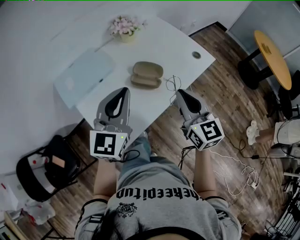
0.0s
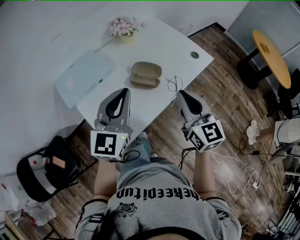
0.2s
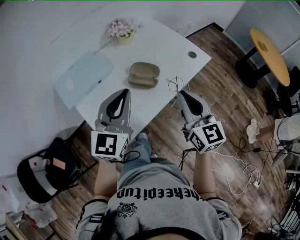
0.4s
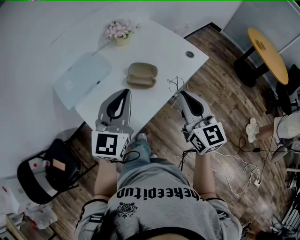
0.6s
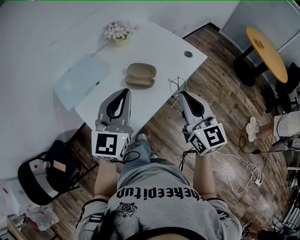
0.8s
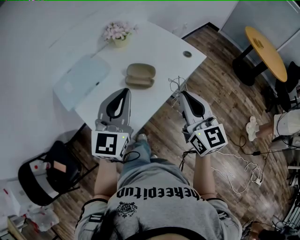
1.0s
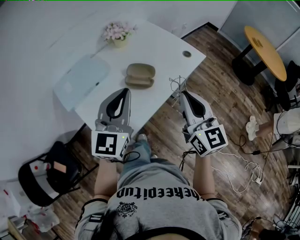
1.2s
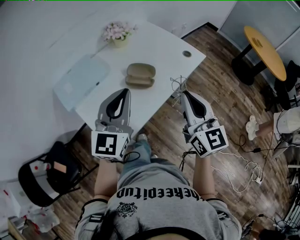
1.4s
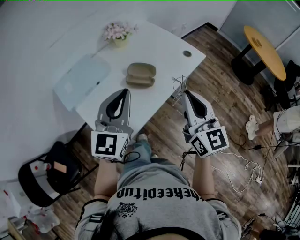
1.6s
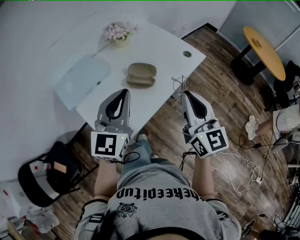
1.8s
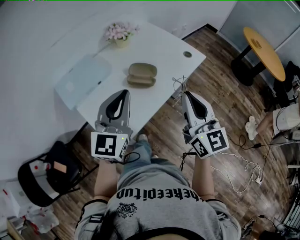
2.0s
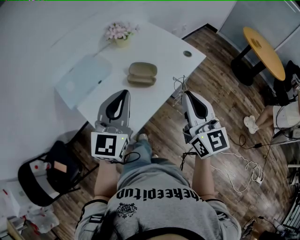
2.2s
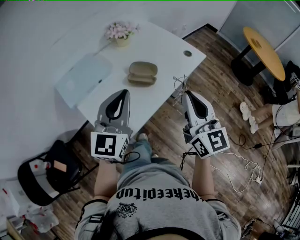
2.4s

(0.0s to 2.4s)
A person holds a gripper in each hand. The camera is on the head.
0.0s - 1.2s: The right gripper travels backward by some 5 cm.
1.2s - 2.4s: The grippers stay close to where they were, moving slightly.

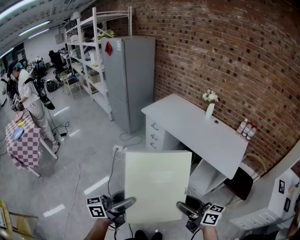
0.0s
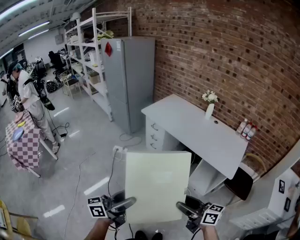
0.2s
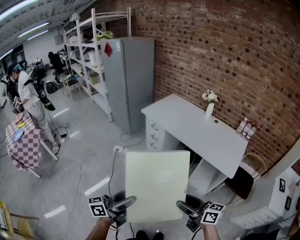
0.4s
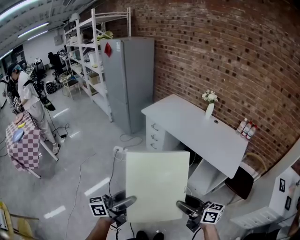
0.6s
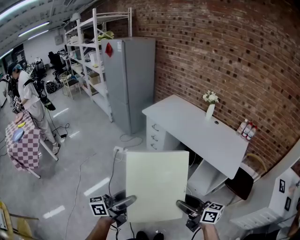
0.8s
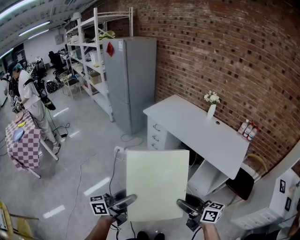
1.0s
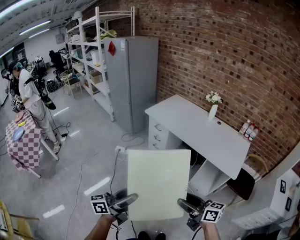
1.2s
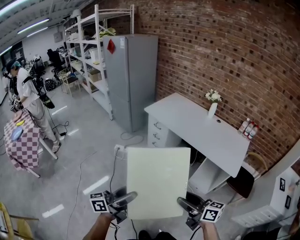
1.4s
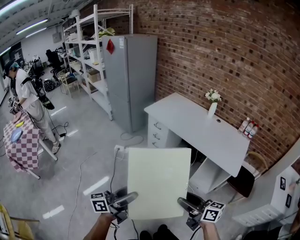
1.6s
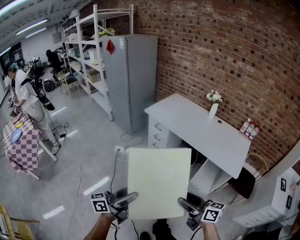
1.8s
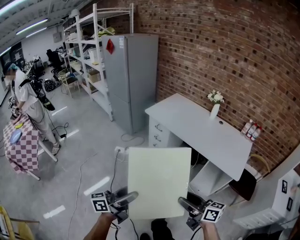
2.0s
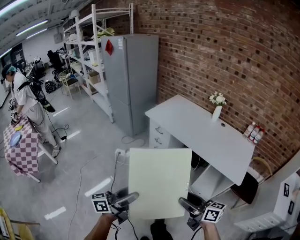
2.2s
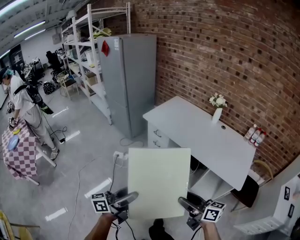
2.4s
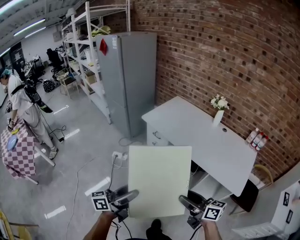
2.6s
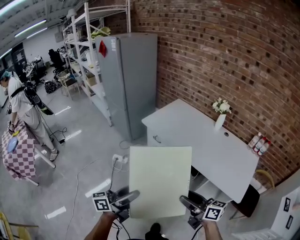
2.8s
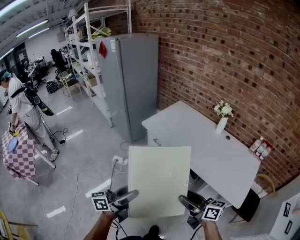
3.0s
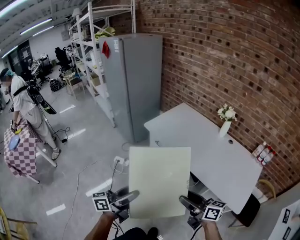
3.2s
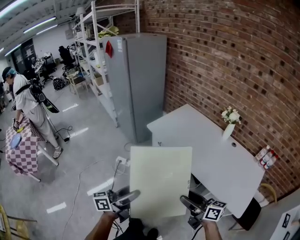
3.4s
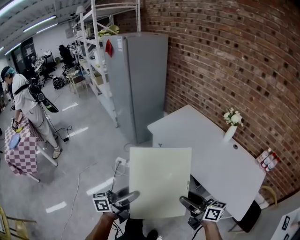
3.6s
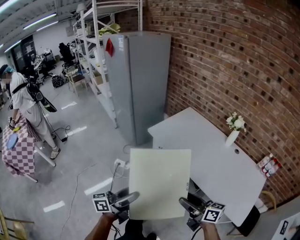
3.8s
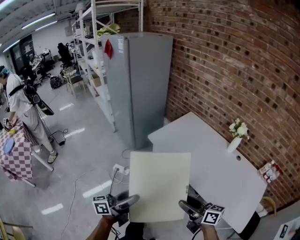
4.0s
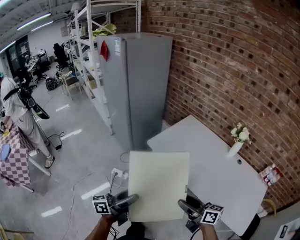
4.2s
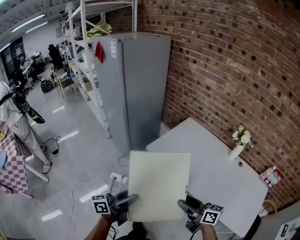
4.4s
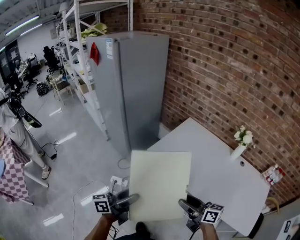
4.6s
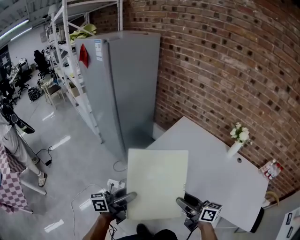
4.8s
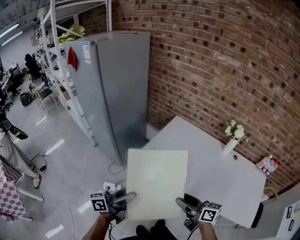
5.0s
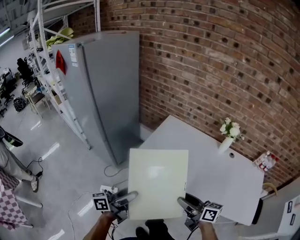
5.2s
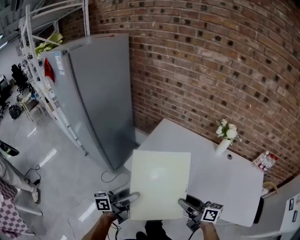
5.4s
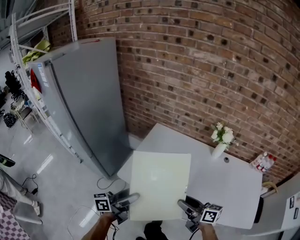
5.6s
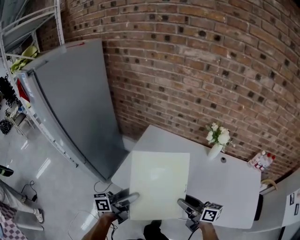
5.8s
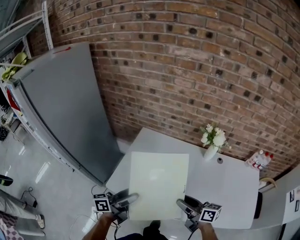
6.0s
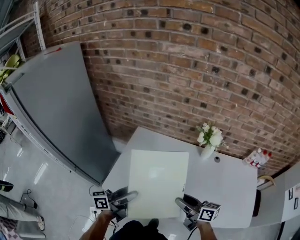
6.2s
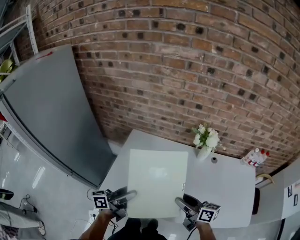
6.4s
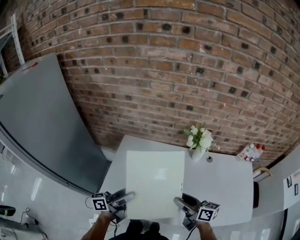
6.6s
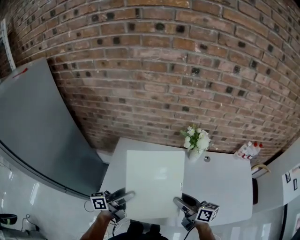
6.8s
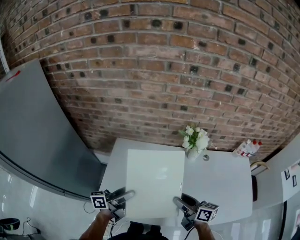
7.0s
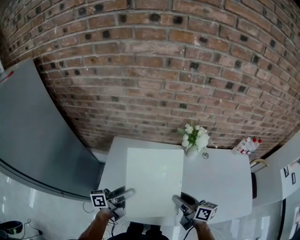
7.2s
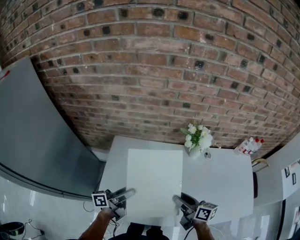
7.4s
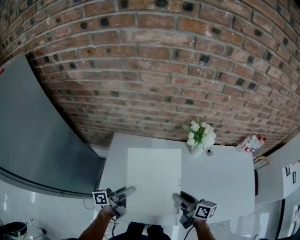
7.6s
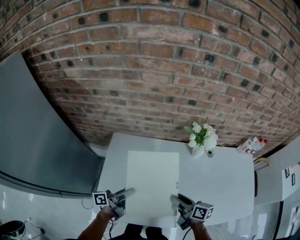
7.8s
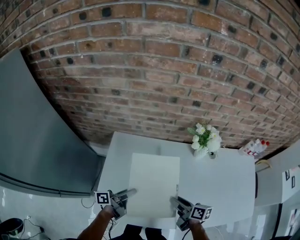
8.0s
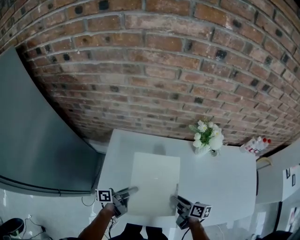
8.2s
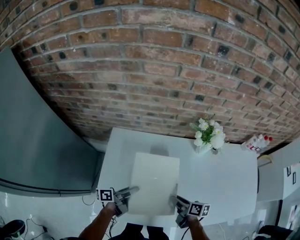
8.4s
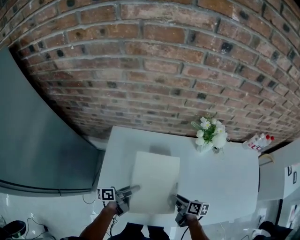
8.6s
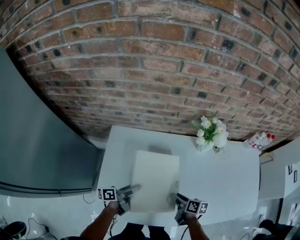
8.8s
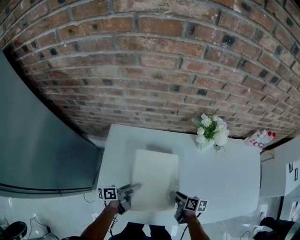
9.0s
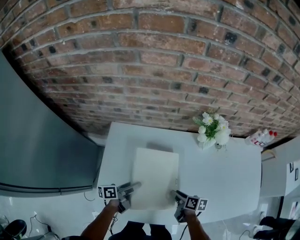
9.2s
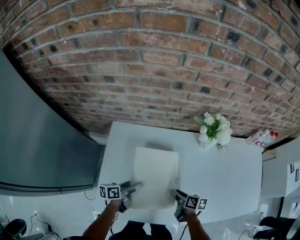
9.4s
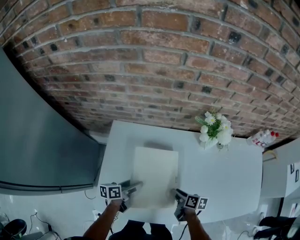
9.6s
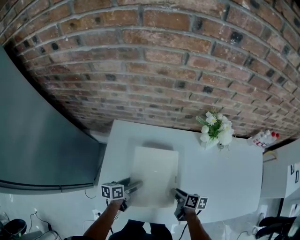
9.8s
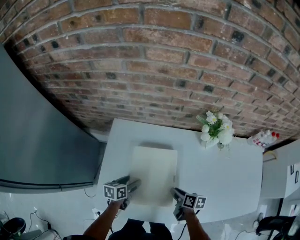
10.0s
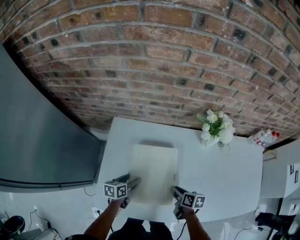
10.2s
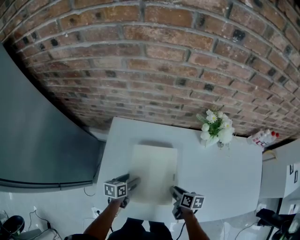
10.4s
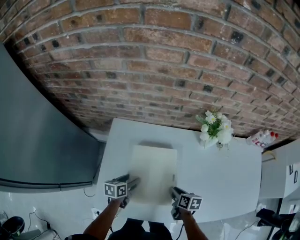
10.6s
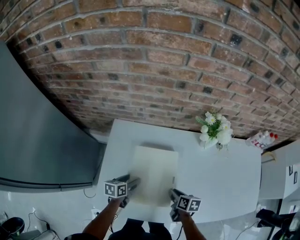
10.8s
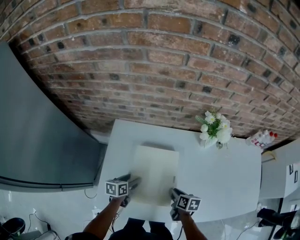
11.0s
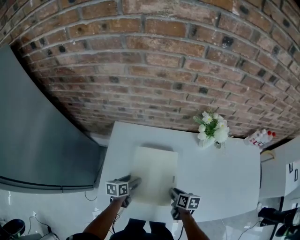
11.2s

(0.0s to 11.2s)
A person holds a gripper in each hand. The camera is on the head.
0.0s - 1.6s: Both grippers move to the left, approximately 5 cm.
1.6s - 3.2s: Both grippers move forward, about 30 cm.
3.2s - 4.8s: Both grippers move forward, approximately 35 cm.
4.8s - 6.4s: The left gripper shifts by about 40 cm, and swivels approximately 30 degrees. Meanwhile the right gripper moves roughly 30 cm, and turns by some 30 degrees.
6.4s - 8.0s: The grippers both shift downward and forward by about 15 cm. The right gripper rotates about 30 degrees; the left gripper turns by approximately 30 degrees.
8.0s - 9.6s: The grippers both shift downward by roughly 10 cm. The left gripper changes its angle by approximately 30 degrees.
9.6s - 11.2s: The left gripper rotates approximately 20 degrees.

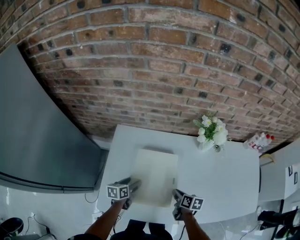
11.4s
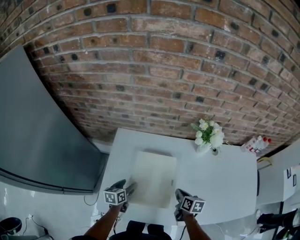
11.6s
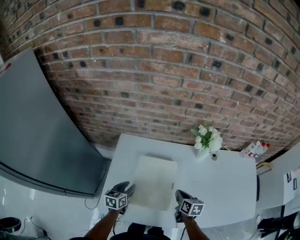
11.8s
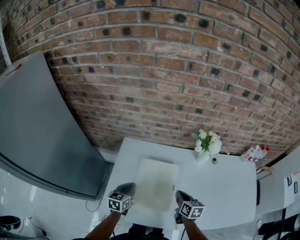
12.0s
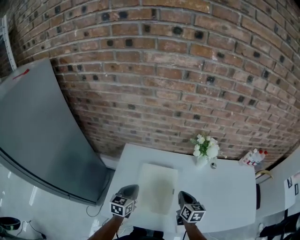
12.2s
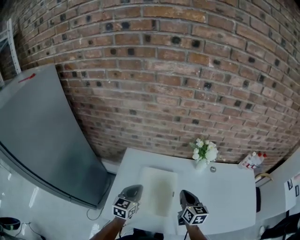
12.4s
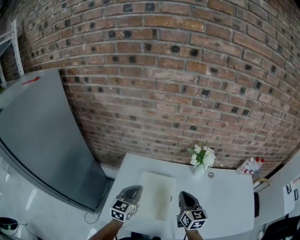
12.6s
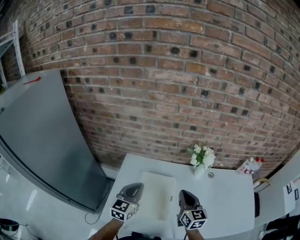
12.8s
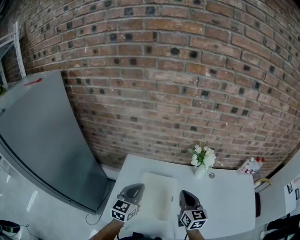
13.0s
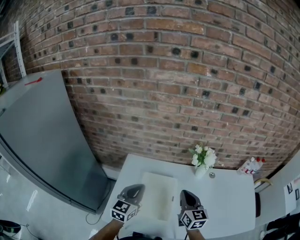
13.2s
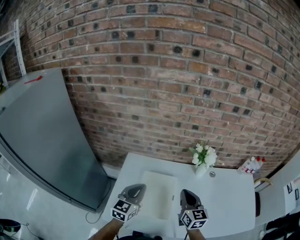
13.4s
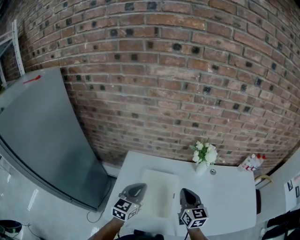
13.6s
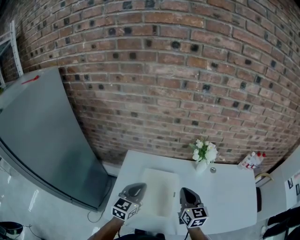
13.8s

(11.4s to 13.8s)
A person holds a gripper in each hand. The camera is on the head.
11.4s - 12.6s: Both grippers move upward, about 25 cm. The right gripper tilts its fingers approximately 30 degrees upward. The left gripper changes its angle by roughly 50 degrees, and closes up.
12.6s - 13.8s: There are only small adjustments of the grippers.

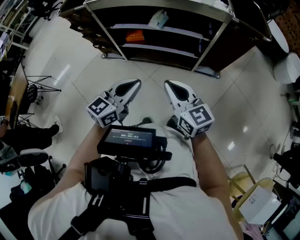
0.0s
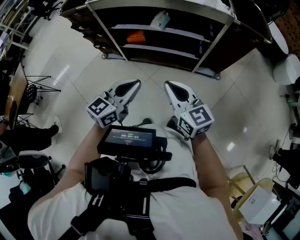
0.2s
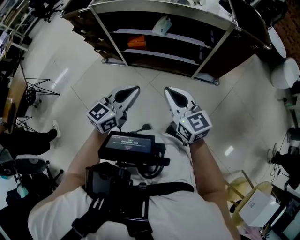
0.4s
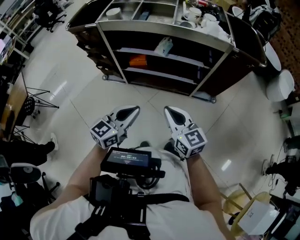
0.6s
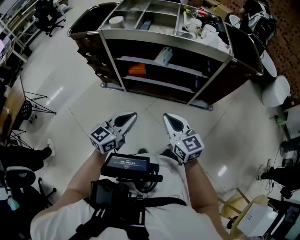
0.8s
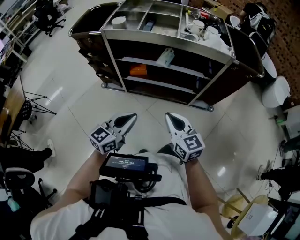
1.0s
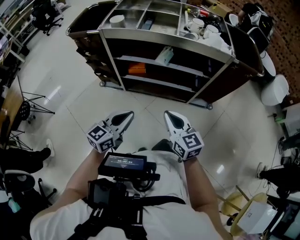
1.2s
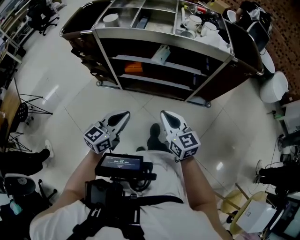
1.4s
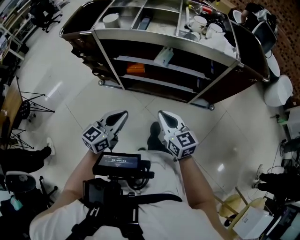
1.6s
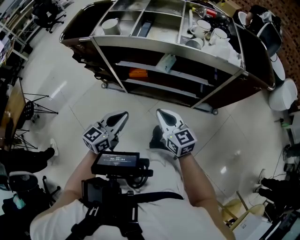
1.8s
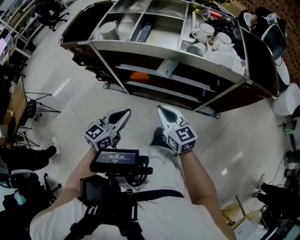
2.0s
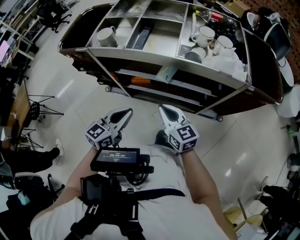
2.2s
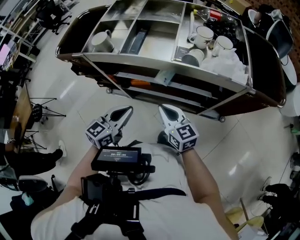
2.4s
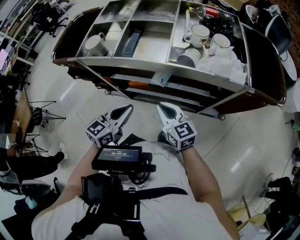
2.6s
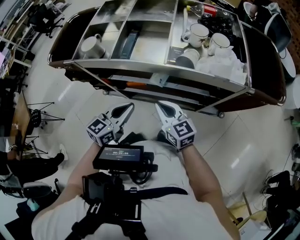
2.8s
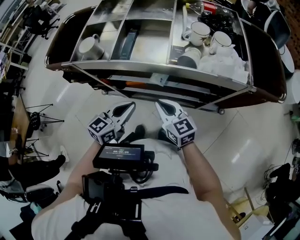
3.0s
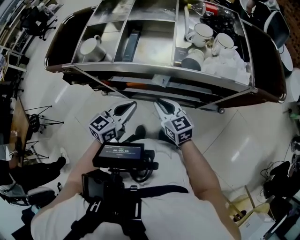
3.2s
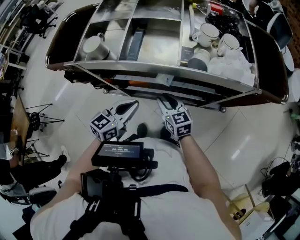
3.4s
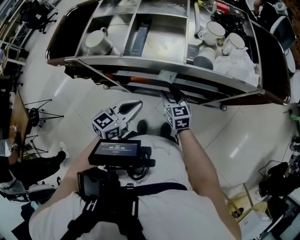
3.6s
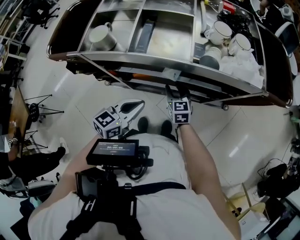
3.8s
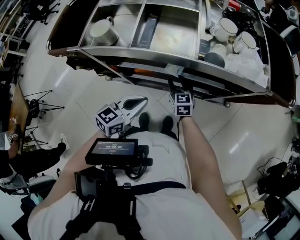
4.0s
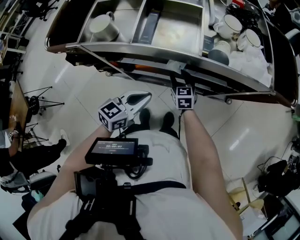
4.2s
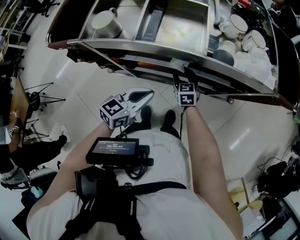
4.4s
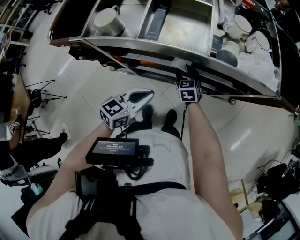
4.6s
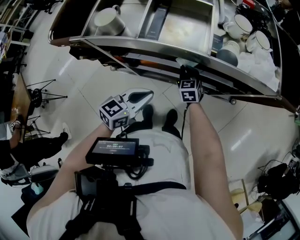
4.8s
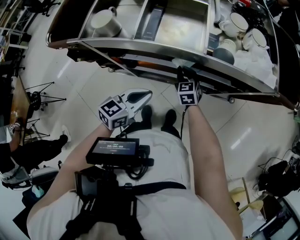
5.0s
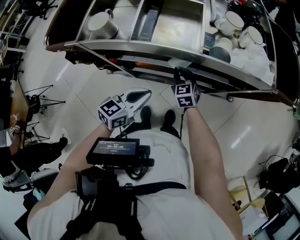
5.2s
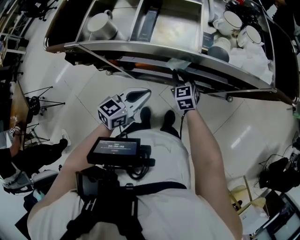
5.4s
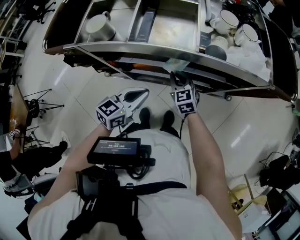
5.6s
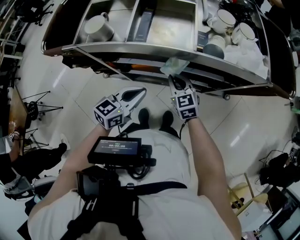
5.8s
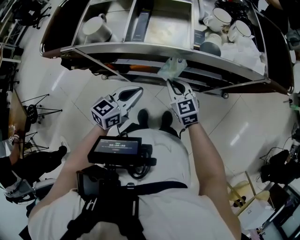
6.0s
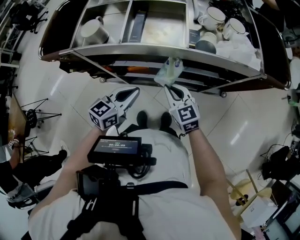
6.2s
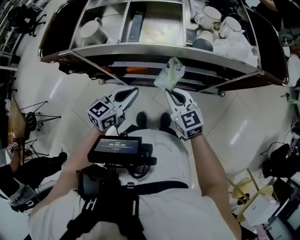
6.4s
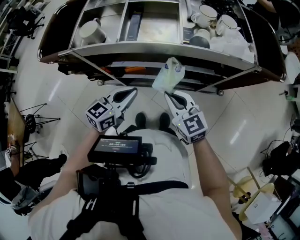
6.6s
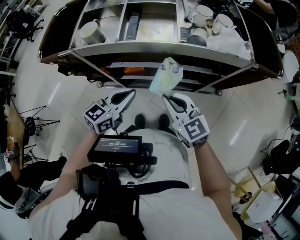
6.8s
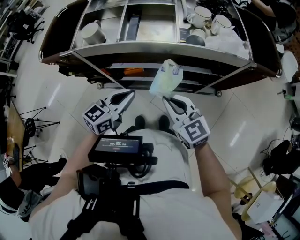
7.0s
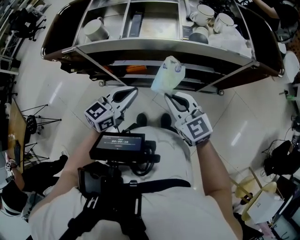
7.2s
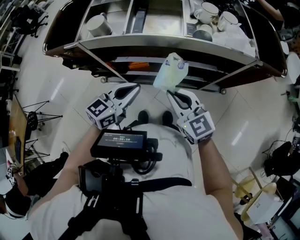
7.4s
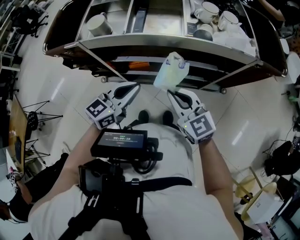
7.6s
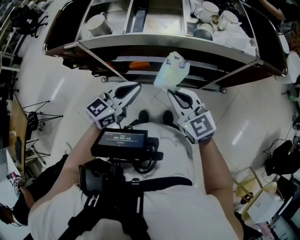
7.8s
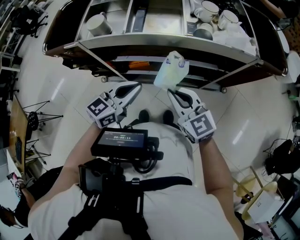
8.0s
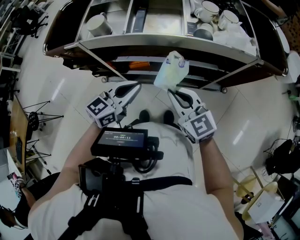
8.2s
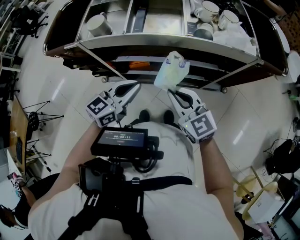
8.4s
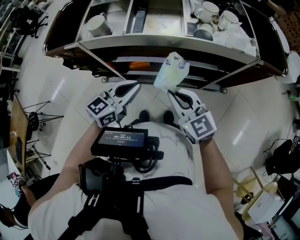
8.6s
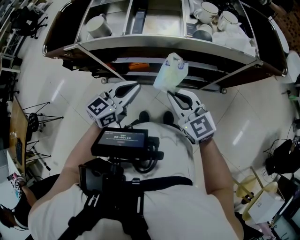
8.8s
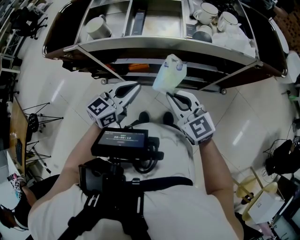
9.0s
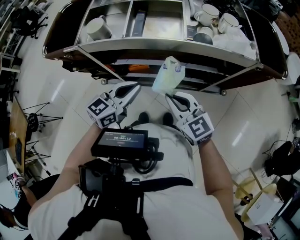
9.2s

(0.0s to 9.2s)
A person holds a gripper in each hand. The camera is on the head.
0.0s - 1.6s: The left gripper shifts roughly 15 cm to the left and forward. Meanwhile the right gripper heads forward and to the left, covering some 10 cm.
1.6s - 3.0s: Both grippers travel together forward, some 20 cm.
3.0s - 4.6s: The right gripper goes roughly 20 cm downward and forward, changes its angle by roughly 30 degrees, and opens its fingers.
4.6s - 6.2s: The right gripper travels upward and backward by about 15 cm, and closes its fingers.
6.2s - 7.6s: The left gripper moves upward, about 5 cm. The right gripper travels upward and backward by approximately 15 cm.
7.6s - 9.2s: The grippers make only small movements.
